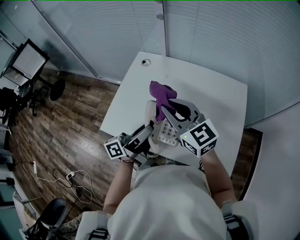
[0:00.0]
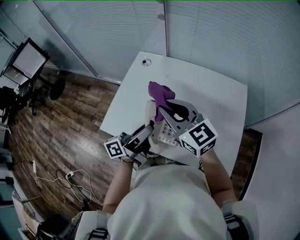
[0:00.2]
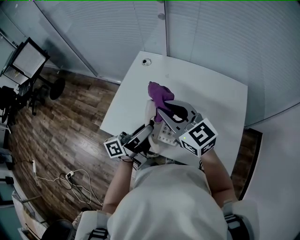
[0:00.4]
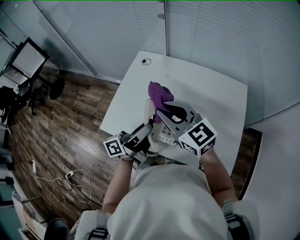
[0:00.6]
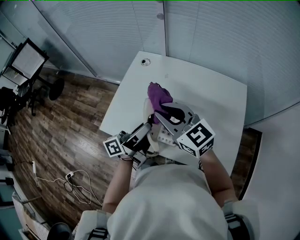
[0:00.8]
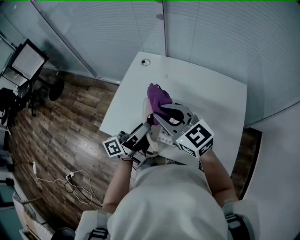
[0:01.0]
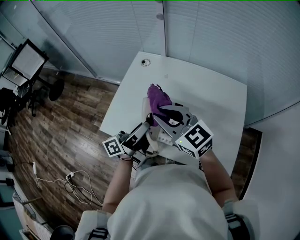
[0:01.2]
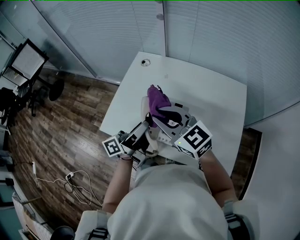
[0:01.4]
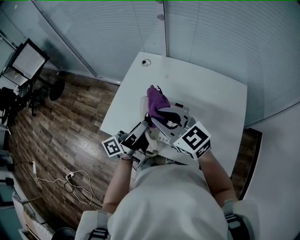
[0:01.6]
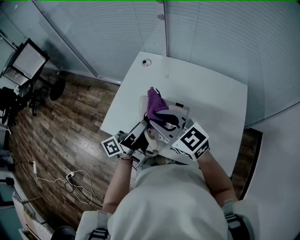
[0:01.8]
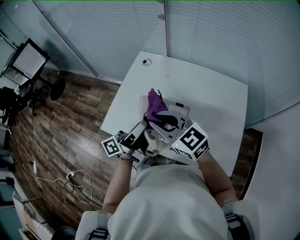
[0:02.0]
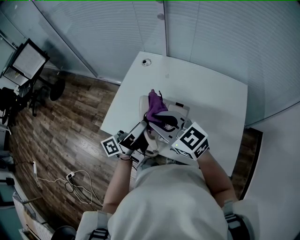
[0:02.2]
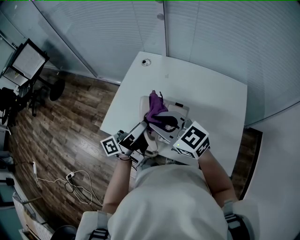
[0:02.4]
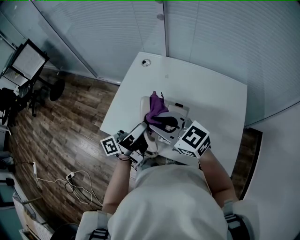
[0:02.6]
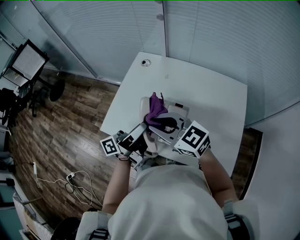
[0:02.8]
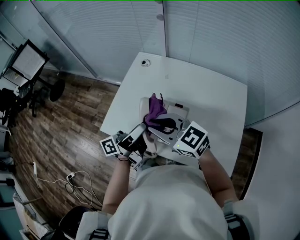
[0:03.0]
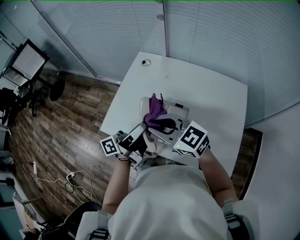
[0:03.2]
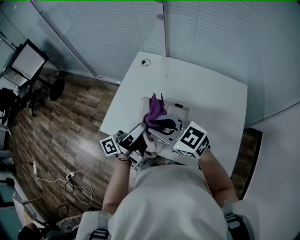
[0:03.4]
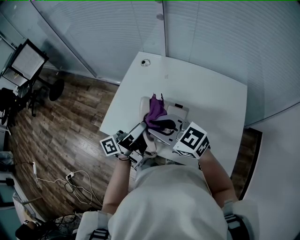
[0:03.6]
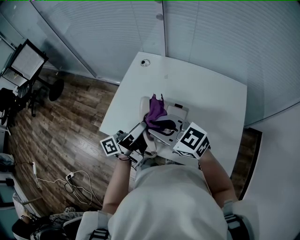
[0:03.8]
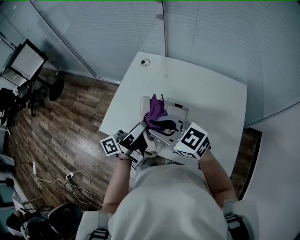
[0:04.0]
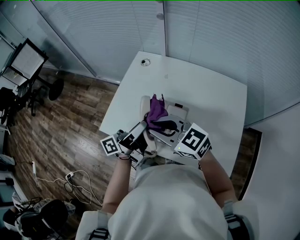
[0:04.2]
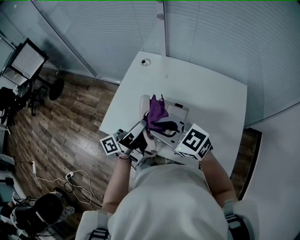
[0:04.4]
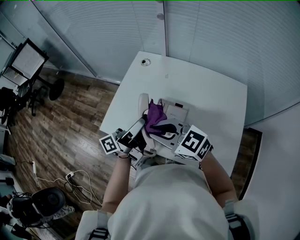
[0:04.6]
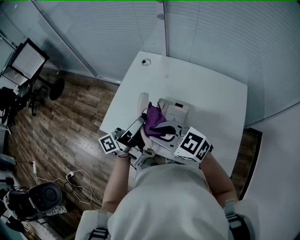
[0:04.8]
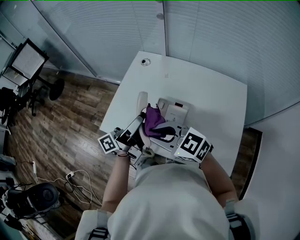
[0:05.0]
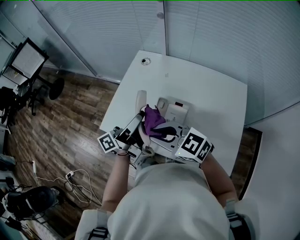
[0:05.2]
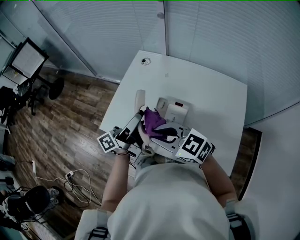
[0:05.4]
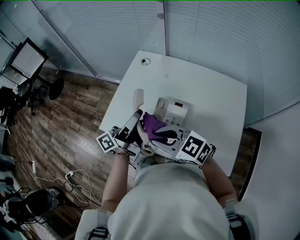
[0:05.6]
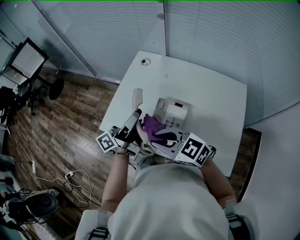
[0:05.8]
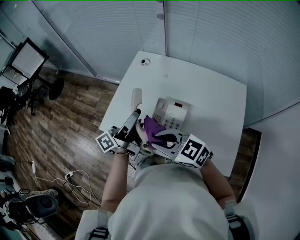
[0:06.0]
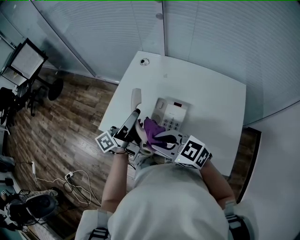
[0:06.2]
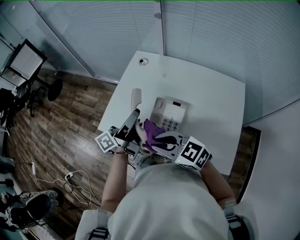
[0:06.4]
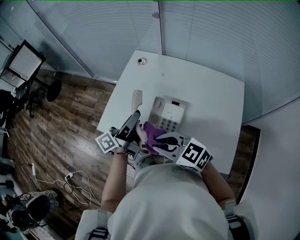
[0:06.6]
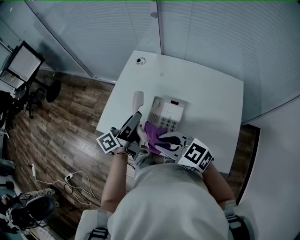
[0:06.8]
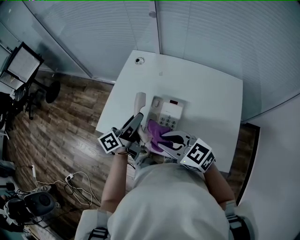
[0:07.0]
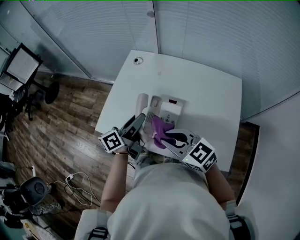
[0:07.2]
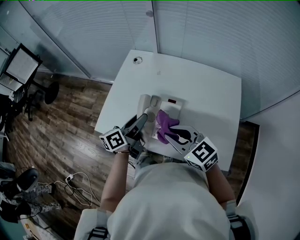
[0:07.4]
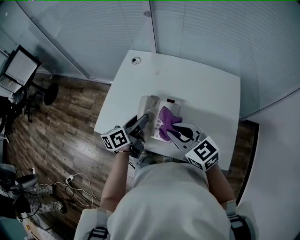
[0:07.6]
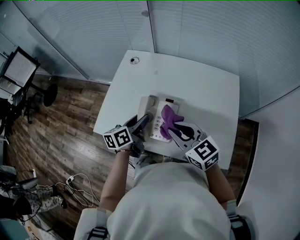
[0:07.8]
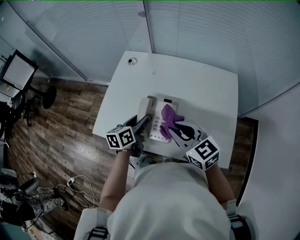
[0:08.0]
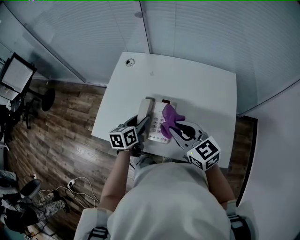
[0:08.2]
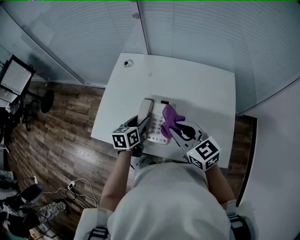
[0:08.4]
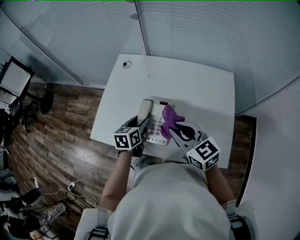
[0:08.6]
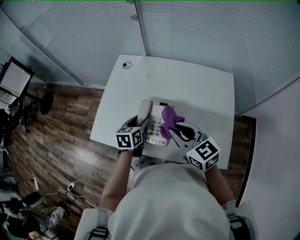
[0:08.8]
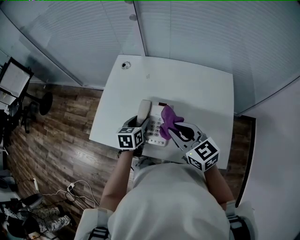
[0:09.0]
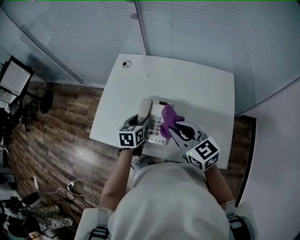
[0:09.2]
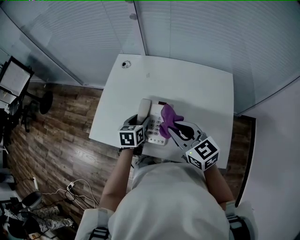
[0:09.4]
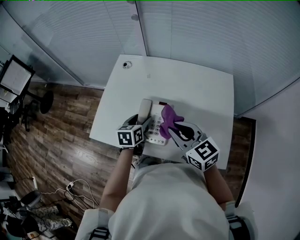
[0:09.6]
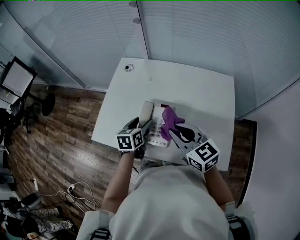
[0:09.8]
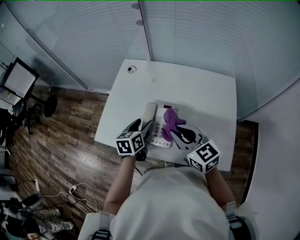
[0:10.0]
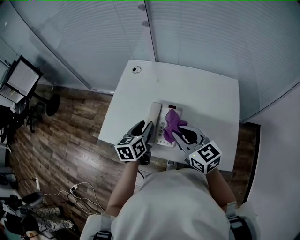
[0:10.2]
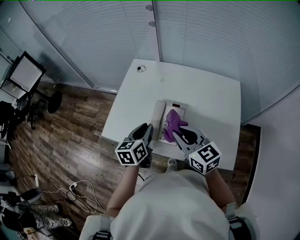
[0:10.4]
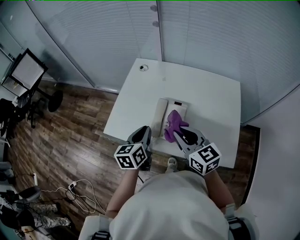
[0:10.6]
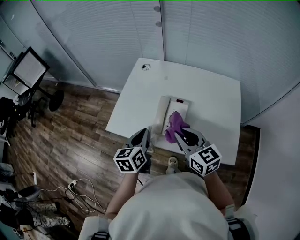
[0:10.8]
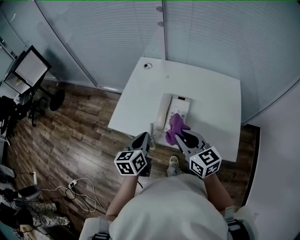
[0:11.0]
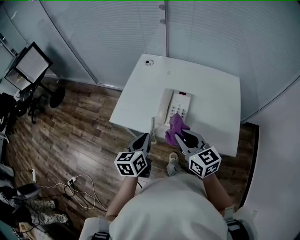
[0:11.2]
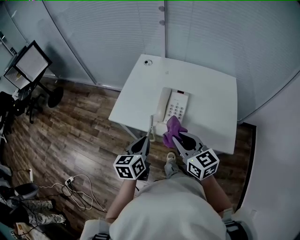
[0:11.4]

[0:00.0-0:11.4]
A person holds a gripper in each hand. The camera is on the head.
0:00.0 to 0:01.4: The grippers make only small movements.
0:01.4 to 0:04.2: The grippers move only a little.
0:04.2 to 0:05.6: The right gripper moves some 5 cm.
0:05.6 to 0:07.2: The left gripper travels downward by approximately 5 cm, and changes its angle by some 20 degrees. Meanwhile the right gripper moves roughly 5 cm.
0:07.2 to 0:08.6: The right gripper goes about 5 cm to the right, and turns by approximately 20 degrees. Meanwhile the left gripper heads downward, covering approximately 10 cm, and tips its fingers downward by approximately 30 degrees.
0:08.6 to 0:10.0: The grippers move only a little.
0:10.0 to 0:11.4: Both grippers travel together backward and to the left, some 20 cm. The left gripper closes.

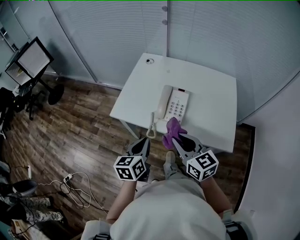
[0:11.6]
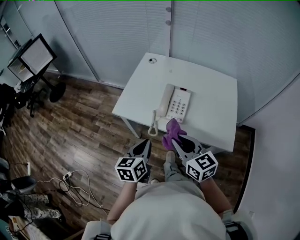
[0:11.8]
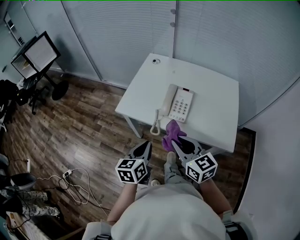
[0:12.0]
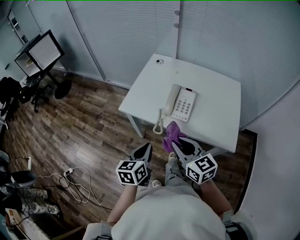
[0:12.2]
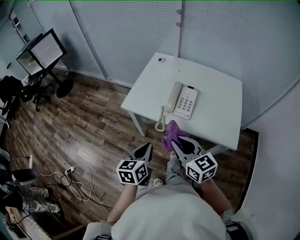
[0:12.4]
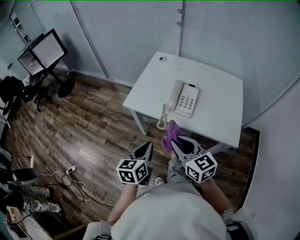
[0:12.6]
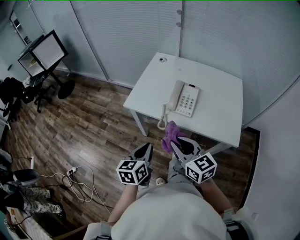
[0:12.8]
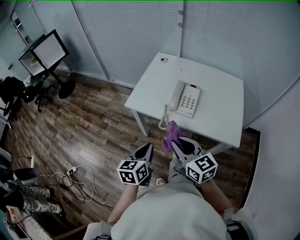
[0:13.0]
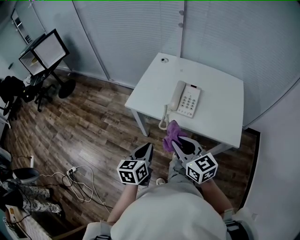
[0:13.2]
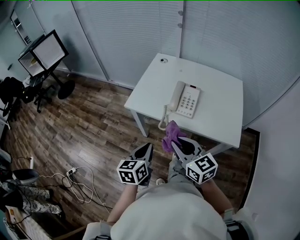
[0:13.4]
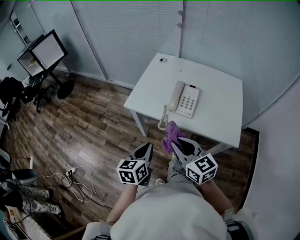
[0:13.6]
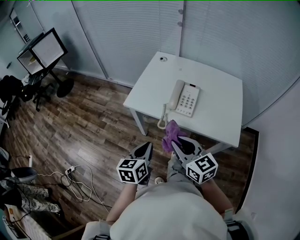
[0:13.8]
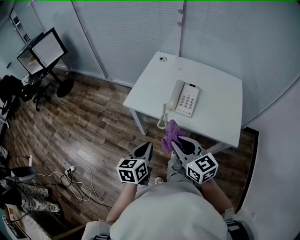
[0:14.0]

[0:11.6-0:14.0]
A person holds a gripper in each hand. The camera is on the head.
0:11.6 to 0:12.8: The two grippers go some 10 cm backward and to the left.
0:12.8 to 0:14.0: Neither gripper changes place.

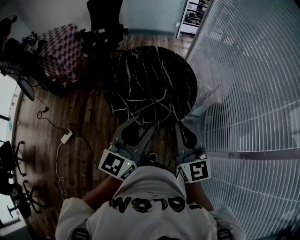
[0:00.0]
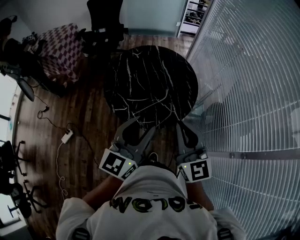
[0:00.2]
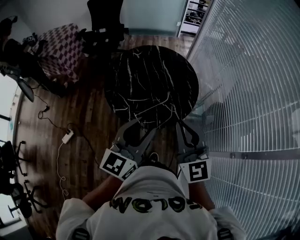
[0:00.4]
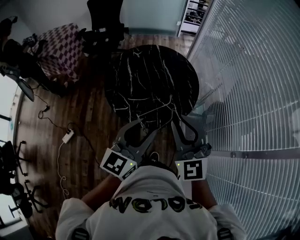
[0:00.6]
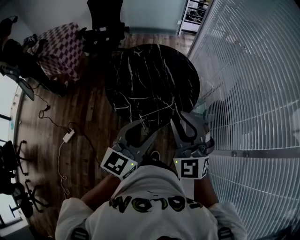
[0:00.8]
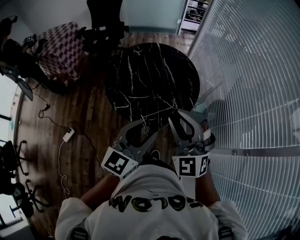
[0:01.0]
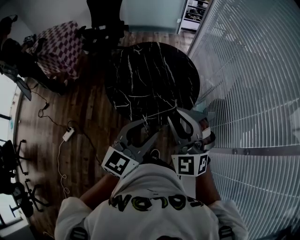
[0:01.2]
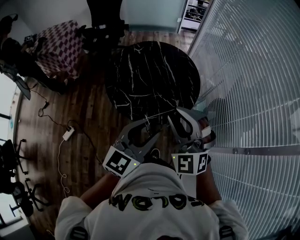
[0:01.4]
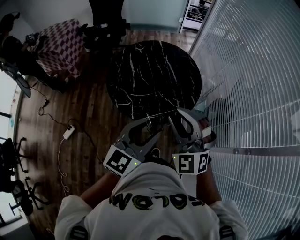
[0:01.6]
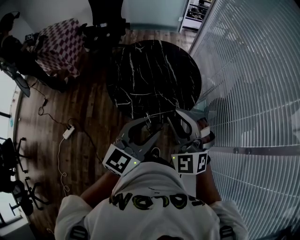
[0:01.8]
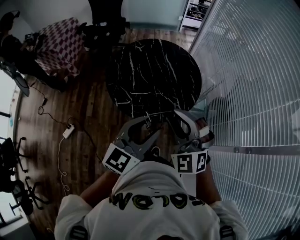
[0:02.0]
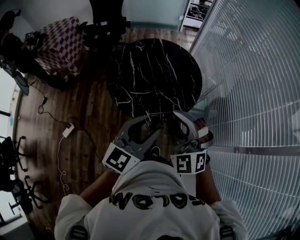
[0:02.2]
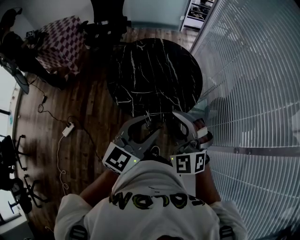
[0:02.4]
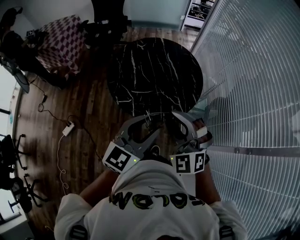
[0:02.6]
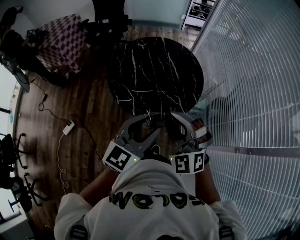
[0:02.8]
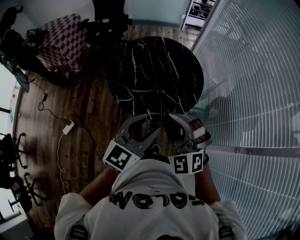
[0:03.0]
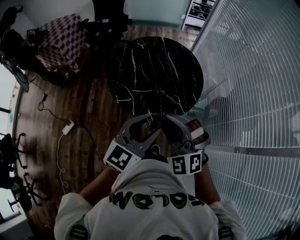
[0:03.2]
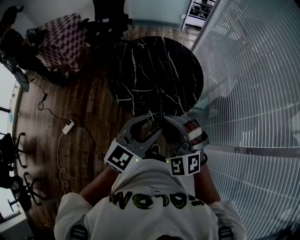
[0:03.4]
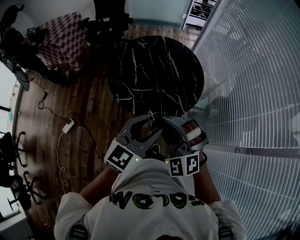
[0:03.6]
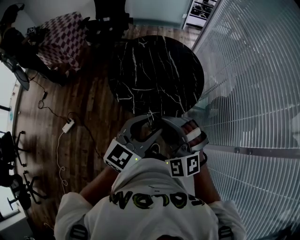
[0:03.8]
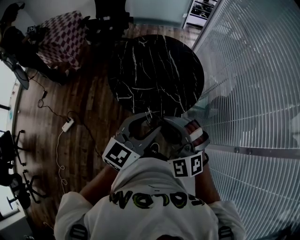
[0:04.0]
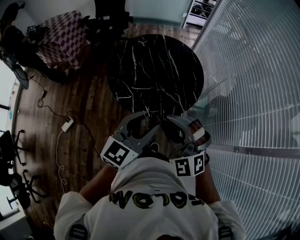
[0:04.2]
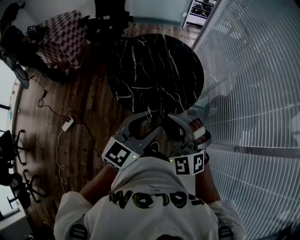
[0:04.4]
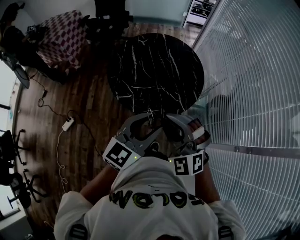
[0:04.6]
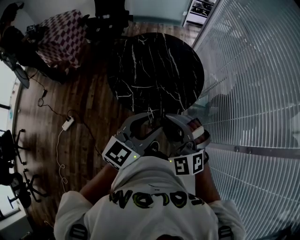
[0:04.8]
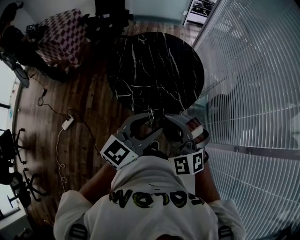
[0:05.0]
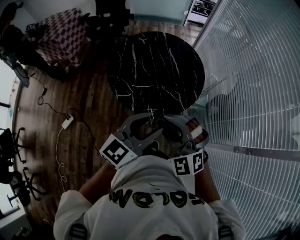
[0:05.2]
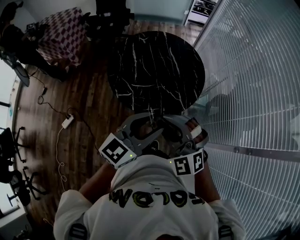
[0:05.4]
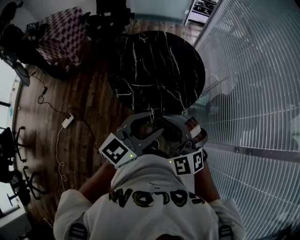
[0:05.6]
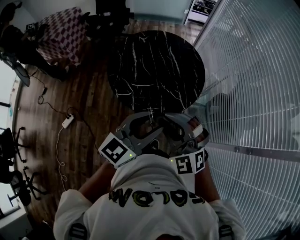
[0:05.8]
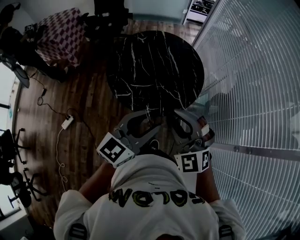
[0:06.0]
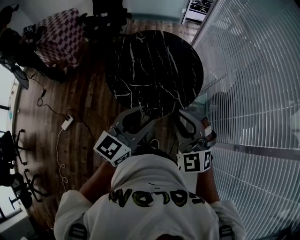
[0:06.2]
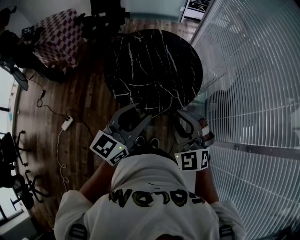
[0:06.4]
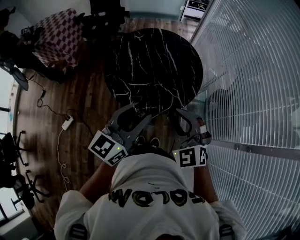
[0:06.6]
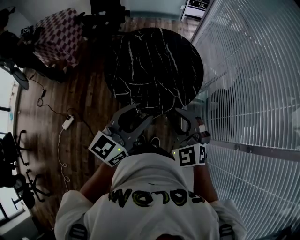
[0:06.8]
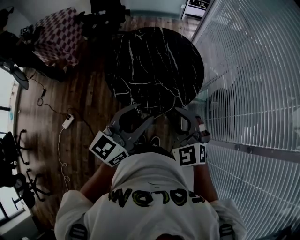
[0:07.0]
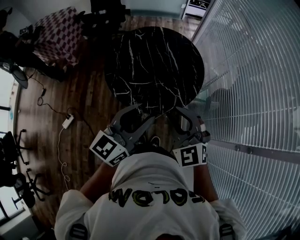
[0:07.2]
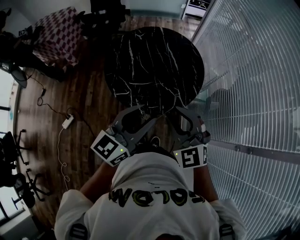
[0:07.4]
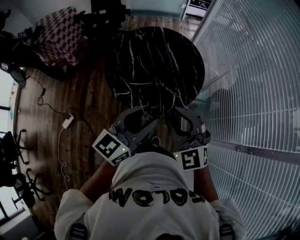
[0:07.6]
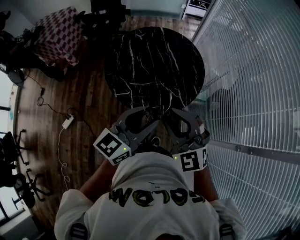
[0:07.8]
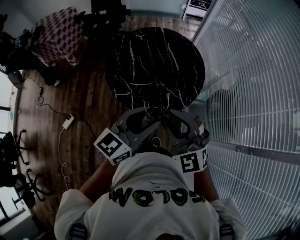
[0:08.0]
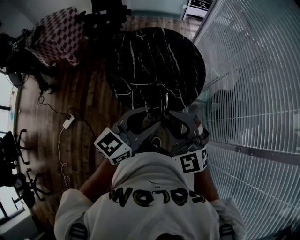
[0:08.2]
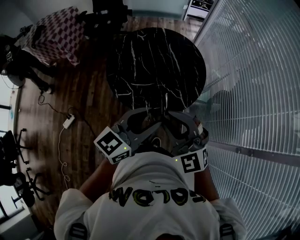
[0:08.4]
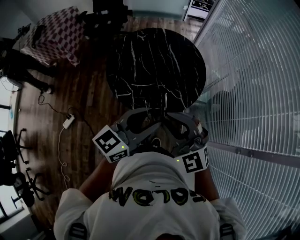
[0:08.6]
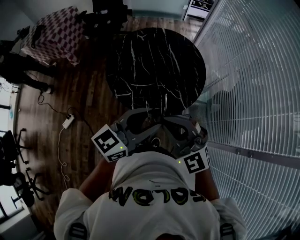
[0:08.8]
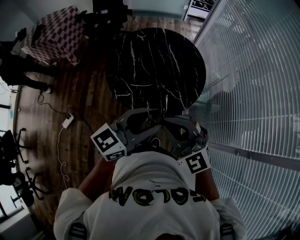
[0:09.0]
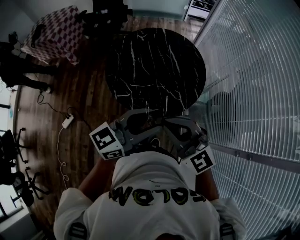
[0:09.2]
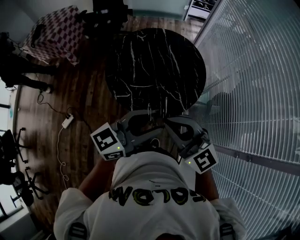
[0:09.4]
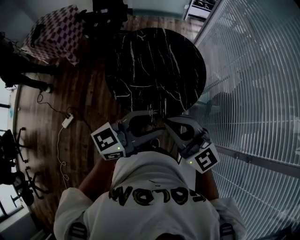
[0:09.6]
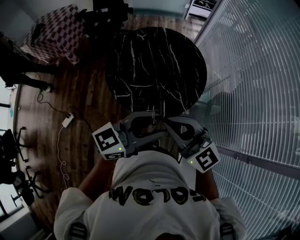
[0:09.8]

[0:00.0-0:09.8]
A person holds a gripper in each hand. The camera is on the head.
0:00.0 to 0:01.4: The right gripper rotates around the line of its fingers by roughly 50 degrees, counterclockwise from behind, and opens up.
0:01.4 to 0:02.8: The right gripper ends up approximately 5 cm from where it was.
0:02.8 to 0:05.6: The grippers make only small movements.
0:05.6 to 0:07.0: The right gripper ends up some 5 cm from where it was, and swivels some 20 degrees.
0:07.0 to 0:08.4: The right gripper ends up about 5 cm from where it was.
0:08.4 to 0:09.8: The right gripper turns by about 30 degrees, and closes.
